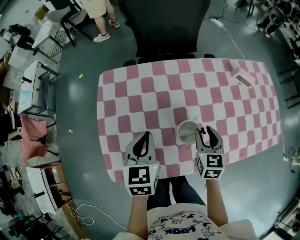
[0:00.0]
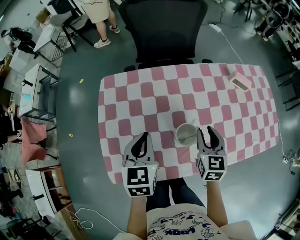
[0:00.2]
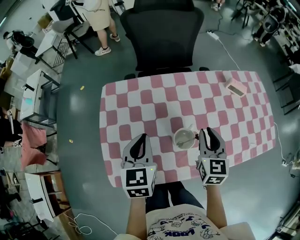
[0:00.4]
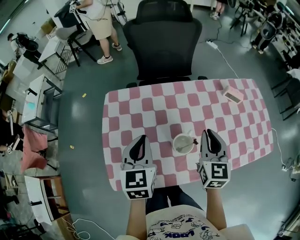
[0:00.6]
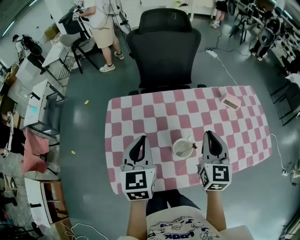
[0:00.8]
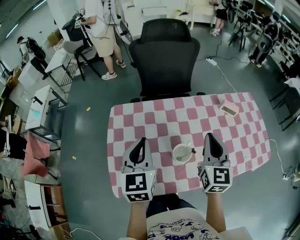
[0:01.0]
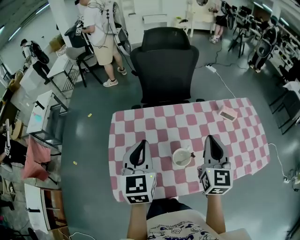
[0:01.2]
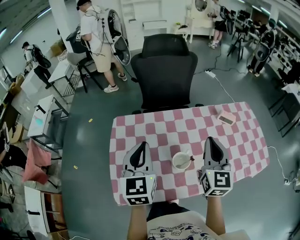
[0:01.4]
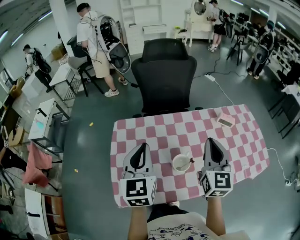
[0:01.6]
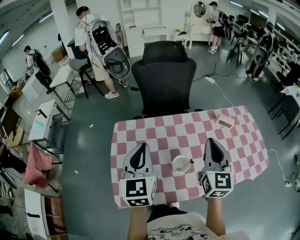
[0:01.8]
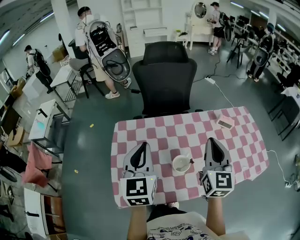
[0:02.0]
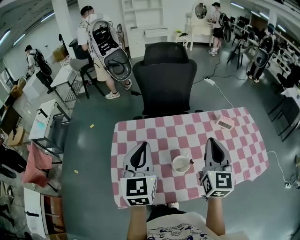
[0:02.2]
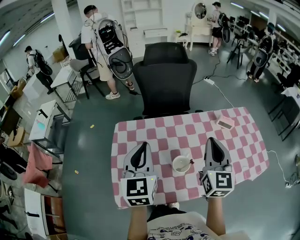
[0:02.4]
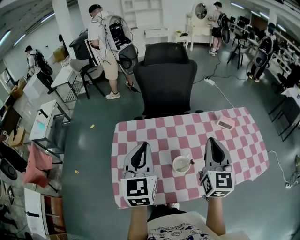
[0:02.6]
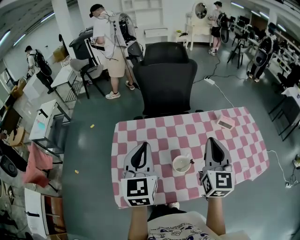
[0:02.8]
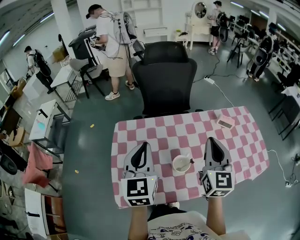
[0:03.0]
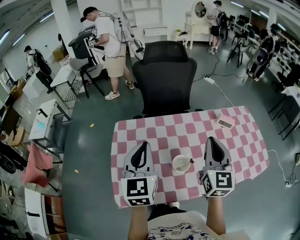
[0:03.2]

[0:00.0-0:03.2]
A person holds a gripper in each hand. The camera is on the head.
0.0 to 1.6 s: The grippers both shift upward by roughly 25 cm. The right gripper points its fingers some 30 degrees further upward, and closes, while the left gripper rotates about 30 degrees.
1.6 to 3.2 s: The grippers make only small movements.

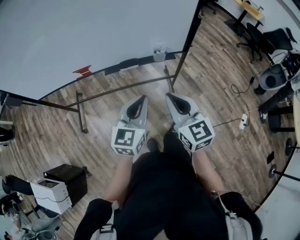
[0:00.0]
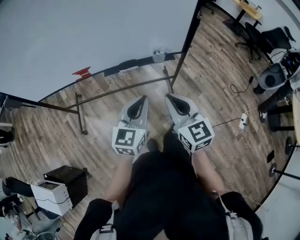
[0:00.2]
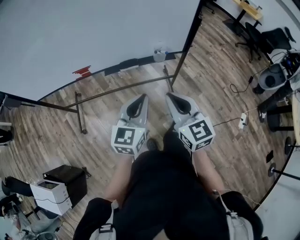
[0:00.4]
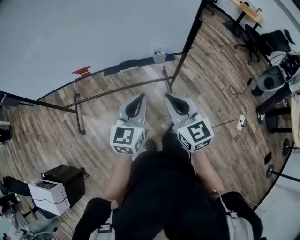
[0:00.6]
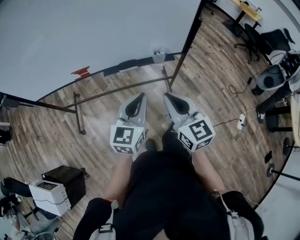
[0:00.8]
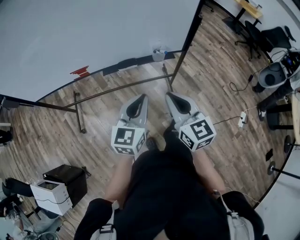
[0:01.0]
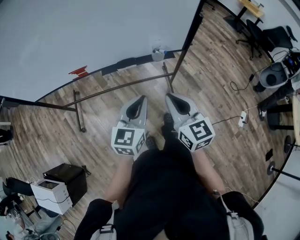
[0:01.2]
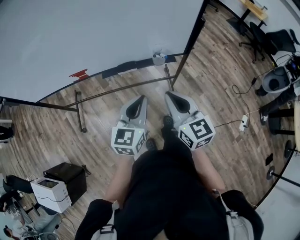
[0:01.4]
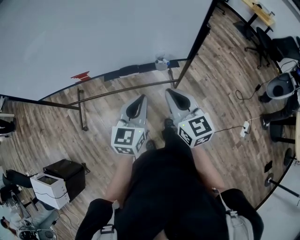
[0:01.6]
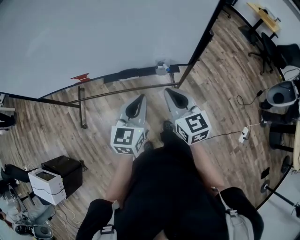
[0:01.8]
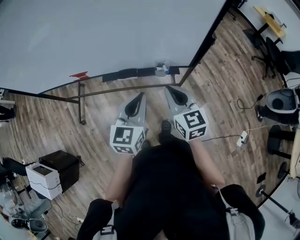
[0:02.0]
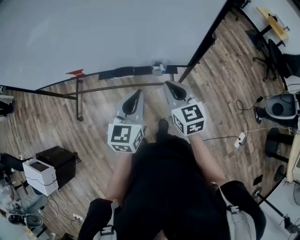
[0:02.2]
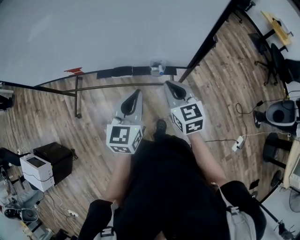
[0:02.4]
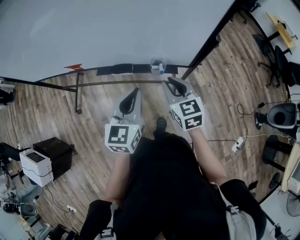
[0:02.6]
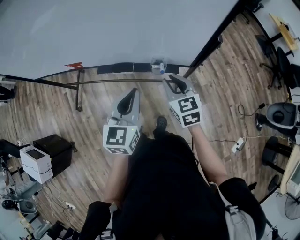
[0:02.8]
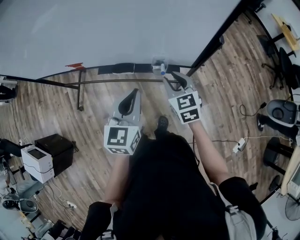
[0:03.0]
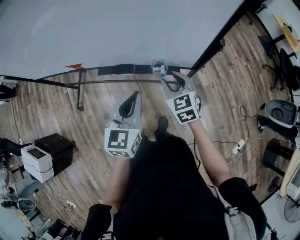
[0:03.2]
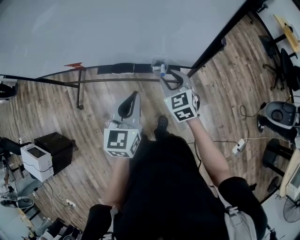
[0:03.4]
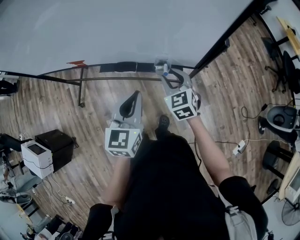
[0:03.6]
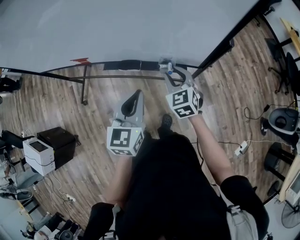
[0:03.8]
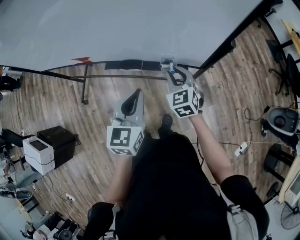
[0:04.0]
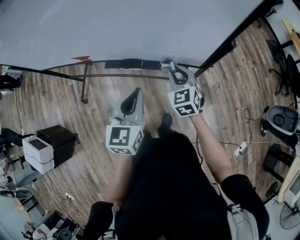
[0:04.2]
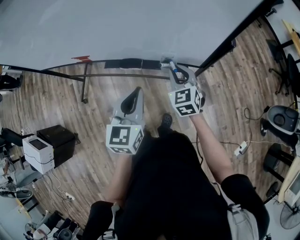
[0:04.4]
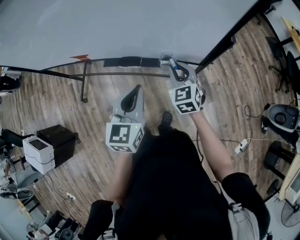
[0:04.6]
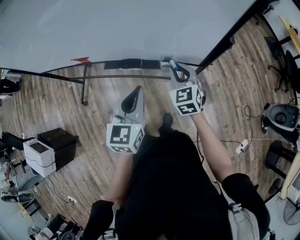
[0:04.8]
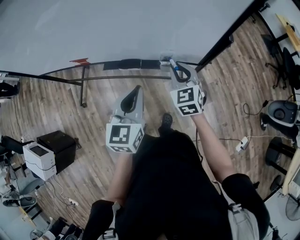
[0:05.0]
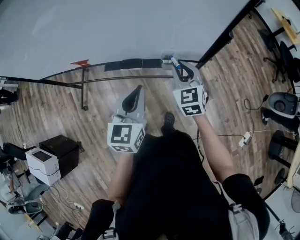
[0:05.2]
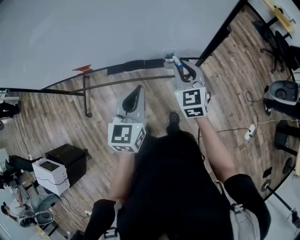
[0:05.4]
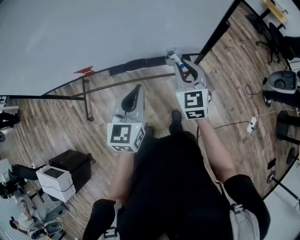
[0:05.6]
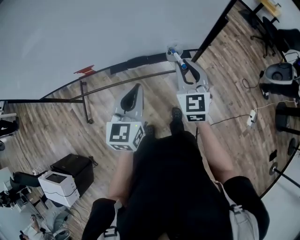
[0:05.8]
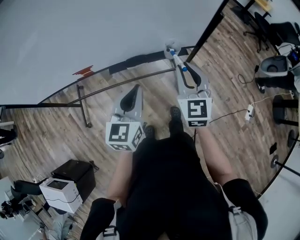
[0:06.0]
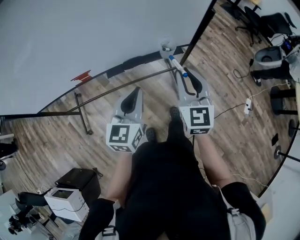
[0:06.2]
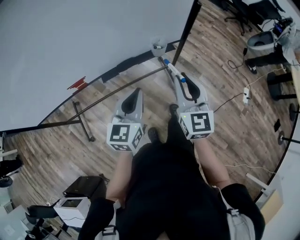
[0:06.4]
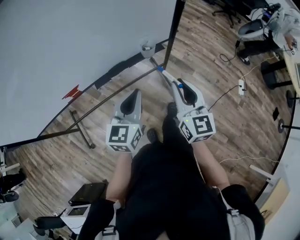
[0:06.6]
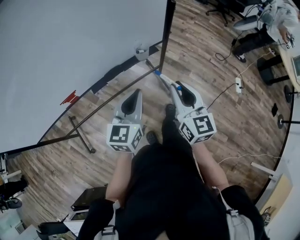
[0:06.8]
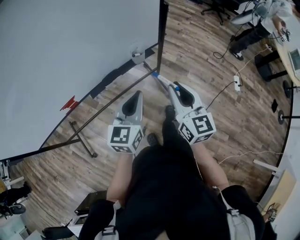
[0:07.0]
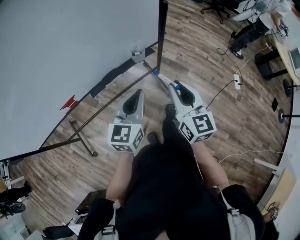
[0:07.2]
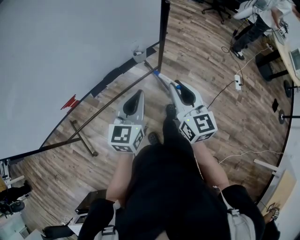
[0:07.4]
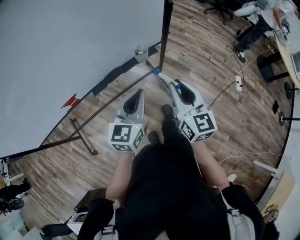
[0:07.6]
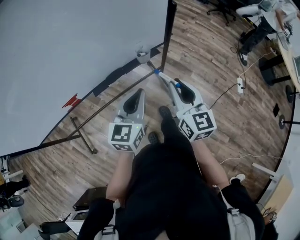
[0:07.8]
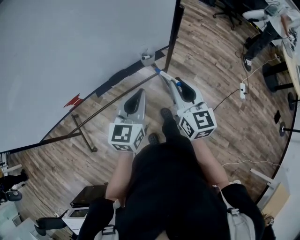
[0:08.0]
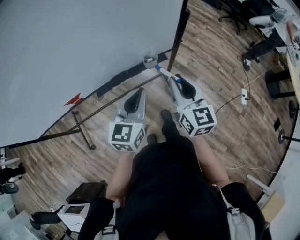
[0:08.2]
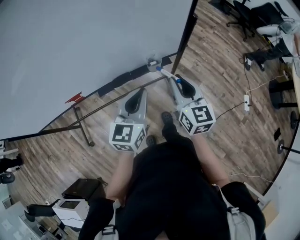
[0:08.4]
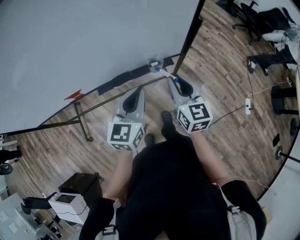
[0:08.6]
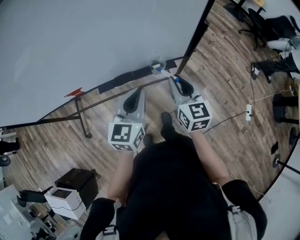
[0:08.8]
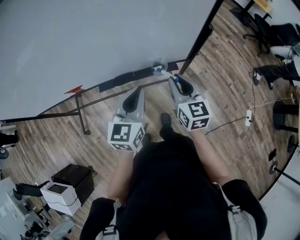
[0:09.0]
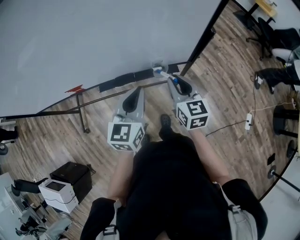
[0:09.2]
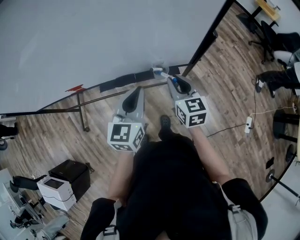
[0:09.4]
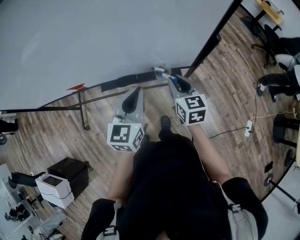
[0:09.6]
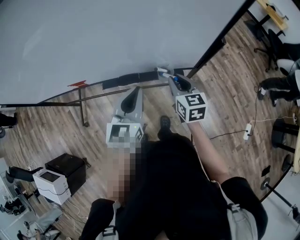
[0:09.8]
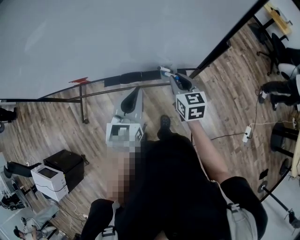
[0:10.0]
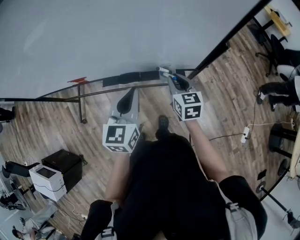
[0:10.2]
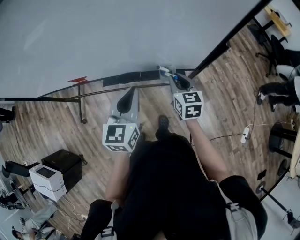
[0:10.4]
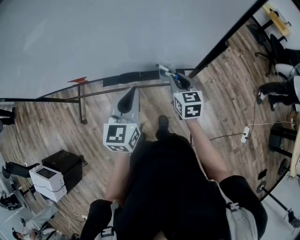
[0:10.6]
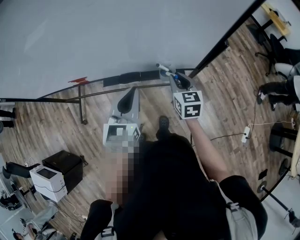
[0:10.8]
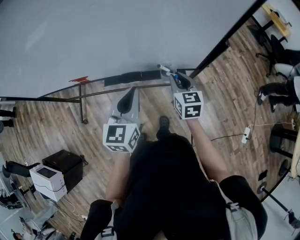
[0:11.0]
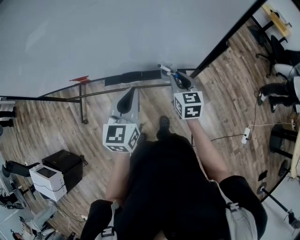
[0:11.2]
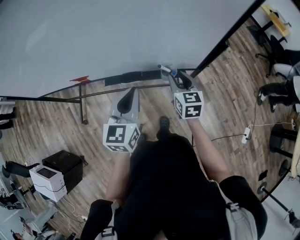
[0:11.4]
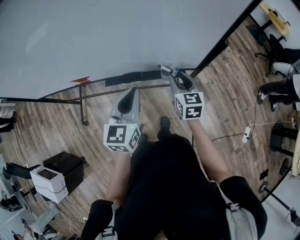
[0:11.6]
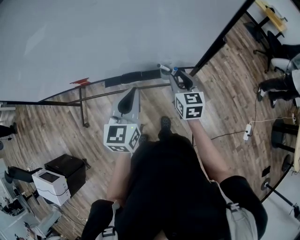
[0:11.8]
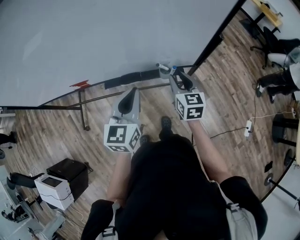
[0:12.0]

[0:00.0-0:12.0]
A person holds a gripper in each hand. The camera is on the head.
0.0 to 1.6 s: Both grippers move forward, some 10 cm.
1.6 to 3.0 s: The right gripper goes some 20 cm forward, downward and to the right, turns by approximately 20 degrees, and opens its fingers, while the left gripper is displaced forward and to the right by roughly 10 cm.
3.0 to 4.4 s: The grippers stay close to where they were, moving slightly.
4.4 to 6.0 s: The left gripper travels to the left by approximately 10 cm, and swivels approximately 20 degrees. Meanwhile the right gripper shifts approximately 15 cm upward, backward and to the left, and rotates approximately 30 degrees.
6.0 to 7.6 s: The right gripper moves backward and to the right, approximately 10 cm, and changes its angle by approximately 30 degrees, while the left gripper goes roughly 10 cm to the right, and rotates some 20 degrees.
7.6 to 9.0 s: The right gripper goes about 15 cm forward, and changes its angle by approximately 20 degrees. The left gripper goes about 10 cm forward, and turns by approximately 20 degrees.
9.0 to 10.4 s: The right gripper shifts about 10 cm downward and forward.
10.4 to 12.0 s: The grippers stay close to where they were, moving slightly.

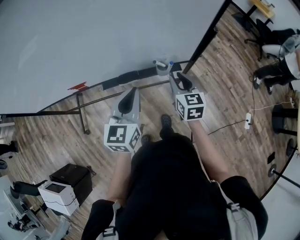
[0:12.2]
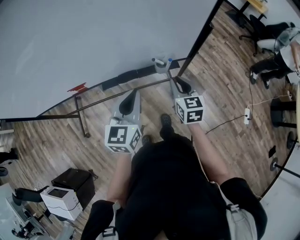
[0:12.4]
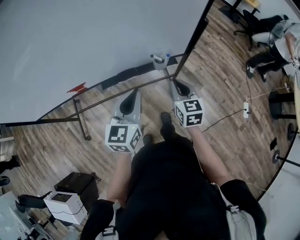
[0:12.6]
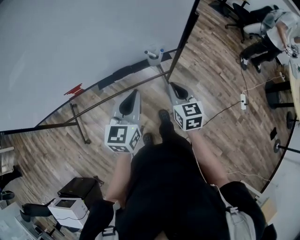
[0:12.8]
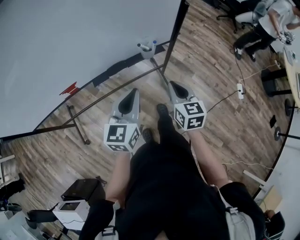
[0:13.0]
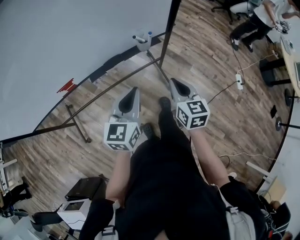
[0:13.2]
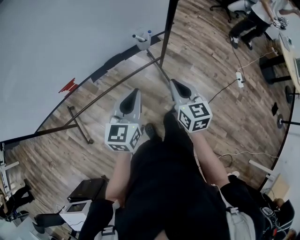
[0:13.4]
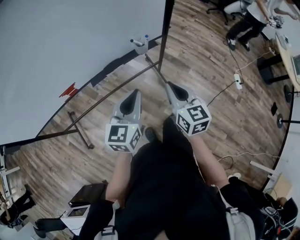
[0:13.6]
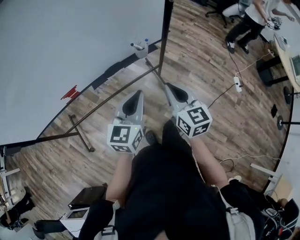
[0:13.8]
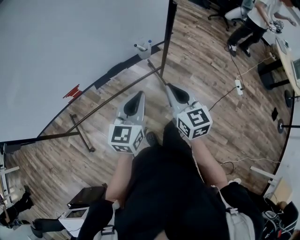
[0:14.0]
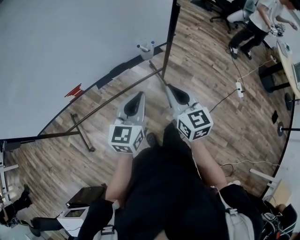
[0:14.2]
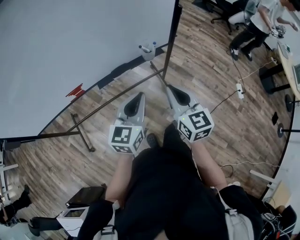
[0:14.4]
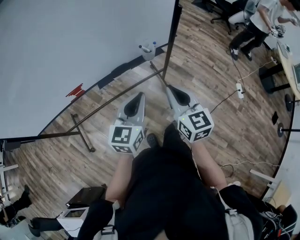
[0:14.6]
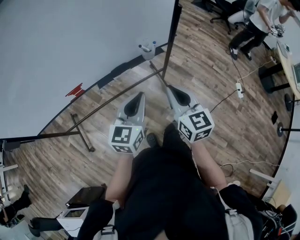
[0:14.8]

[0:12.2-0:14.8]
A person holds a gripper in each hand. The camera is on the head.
12.2 to 13.4 s: The right gripper shifts about 20 cm backward, and closes up. Meanwhile the left gripper goes some 15 cm backward, and changes its angle by some 20 degrees.
13.4 to 14.8 s: The right gripper moves upward, some 5 cm.

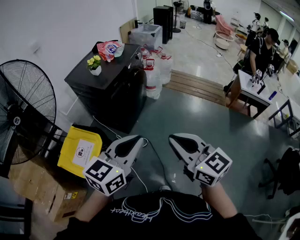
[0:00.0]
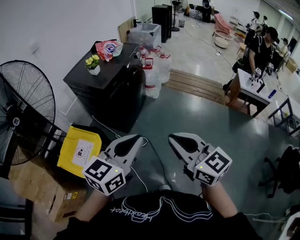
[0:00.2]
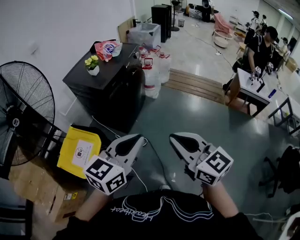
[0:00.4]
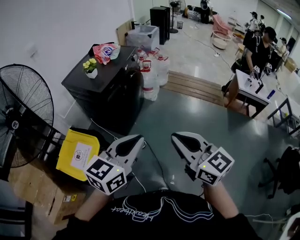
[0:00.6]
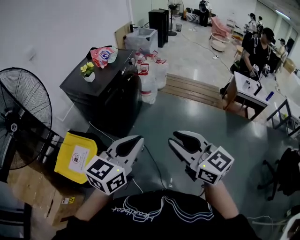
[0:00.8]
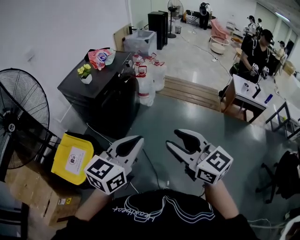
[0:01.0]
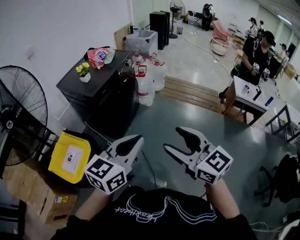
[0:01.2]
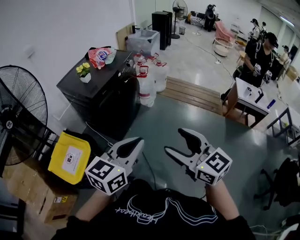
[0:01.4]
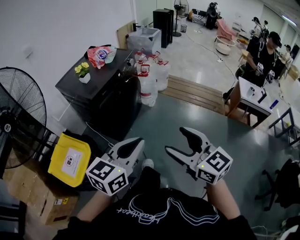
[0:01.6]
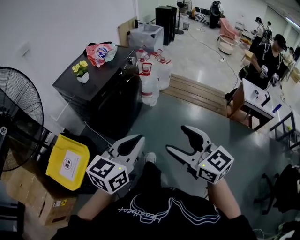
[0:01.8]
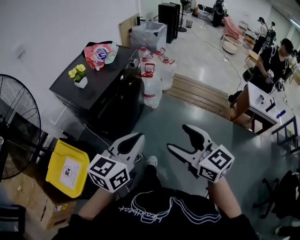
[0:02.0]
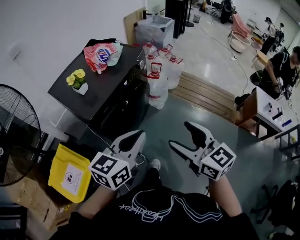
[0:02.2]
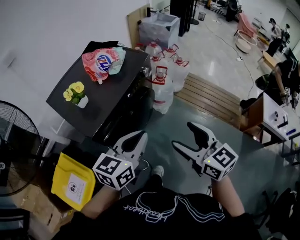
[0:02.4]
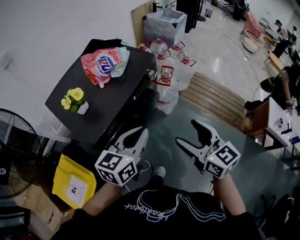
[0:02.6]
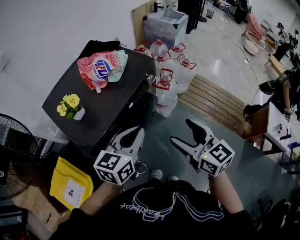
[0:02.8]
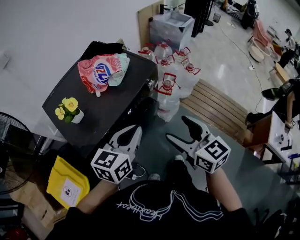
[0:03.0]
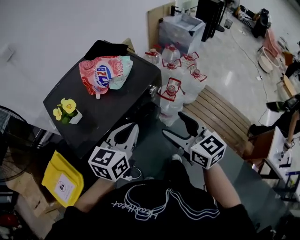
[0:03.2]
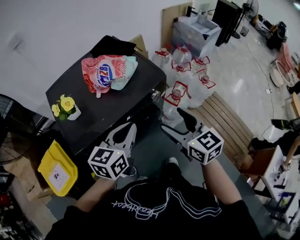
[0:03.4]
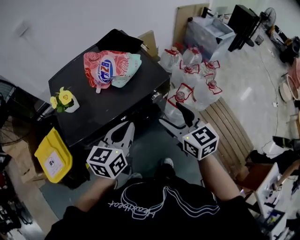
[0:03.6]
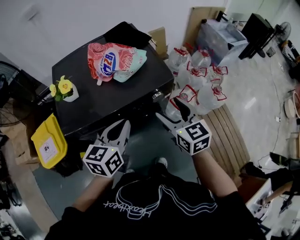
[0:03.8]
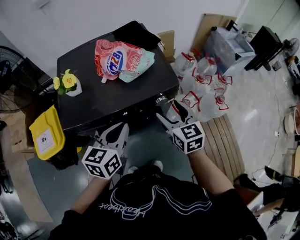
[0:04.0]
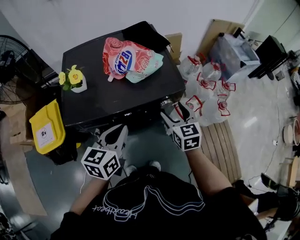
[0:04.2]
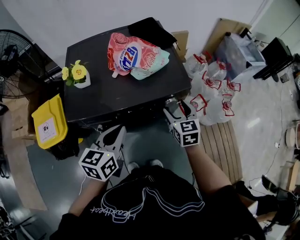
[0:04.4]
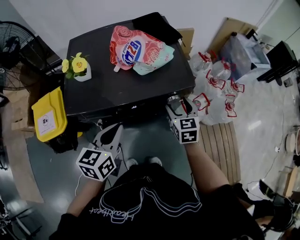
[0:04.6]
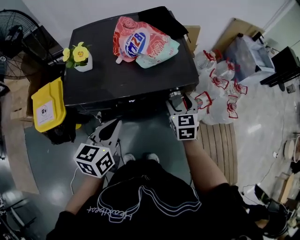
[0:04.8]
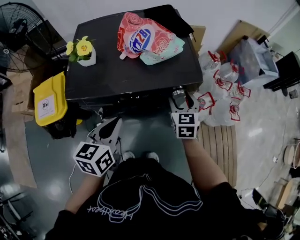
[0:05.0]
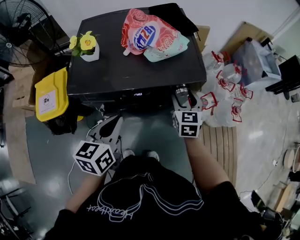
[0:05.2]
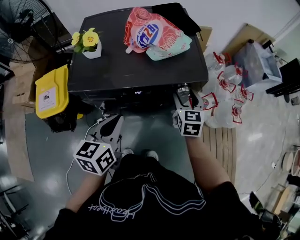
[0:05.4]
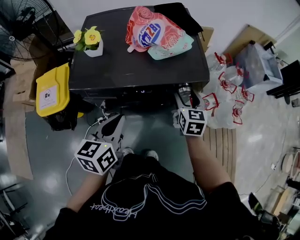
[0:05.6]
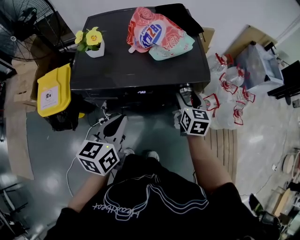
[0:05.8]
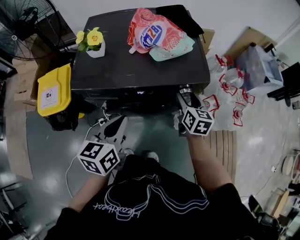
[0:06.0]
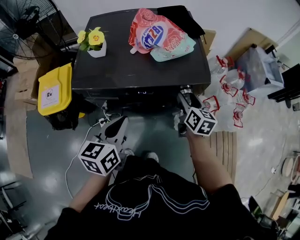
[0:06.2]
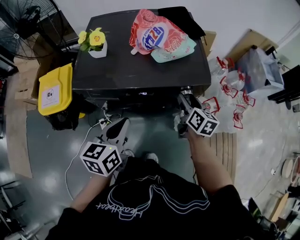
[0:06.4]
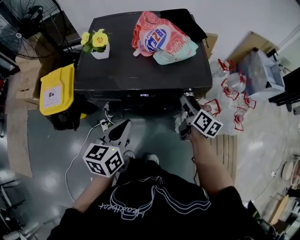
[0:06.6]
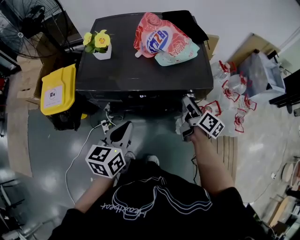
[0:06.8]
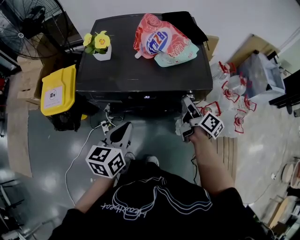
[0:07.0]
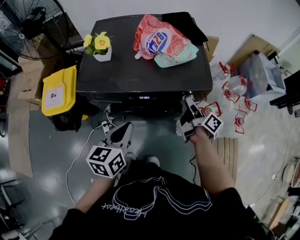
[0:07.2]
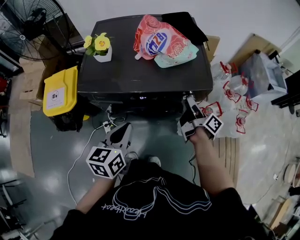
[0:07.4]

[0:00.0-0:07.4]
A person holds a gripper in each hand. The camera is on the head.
0.0 to 1.4 s: The grippers both shift to the right and forward by roughly 10 cm. The right gripper opens.
1.4 to 3.0 s: The two grippers travel together, forward, approximately 60 cm. The left gripper rotates approximately 20 degrees.
3.0 to 4.4 s: The right gripper ends up some 30 cm from where it was, and turns by roughly 30 degrees; the left gripper ends up approximately 5 cm from where it was, and swivels roughly 50 degrees.
4.4 to 6.0 s: The grippers move only a little.
6.0 to 7.4 s: The right gripper rotates around the line of its fingers by roughly 60 degrees, clockwise from behind.
